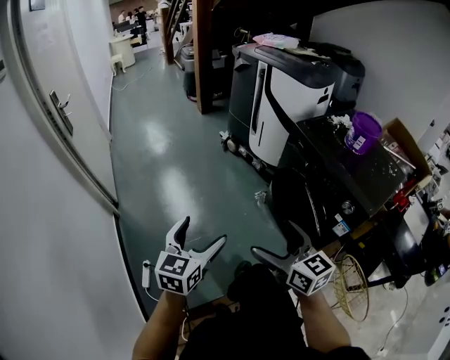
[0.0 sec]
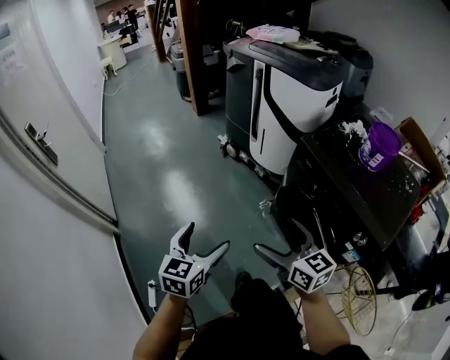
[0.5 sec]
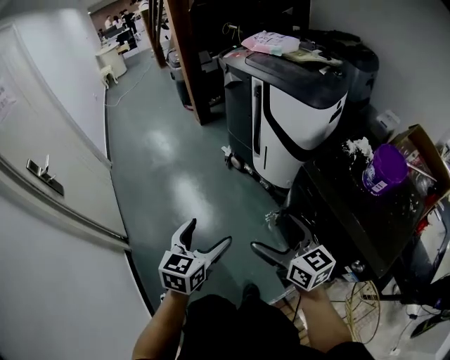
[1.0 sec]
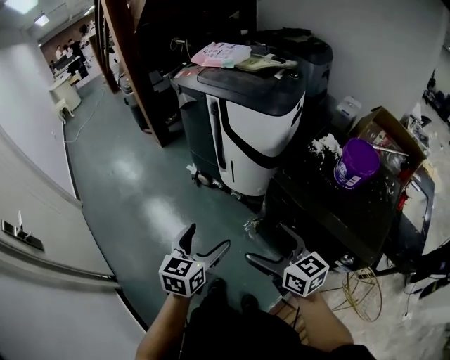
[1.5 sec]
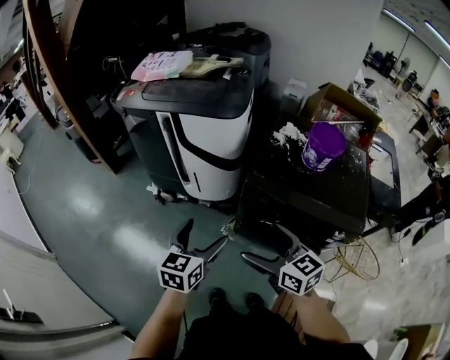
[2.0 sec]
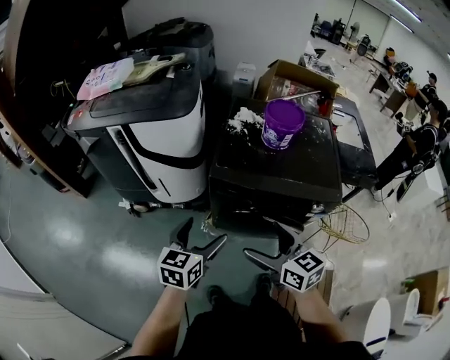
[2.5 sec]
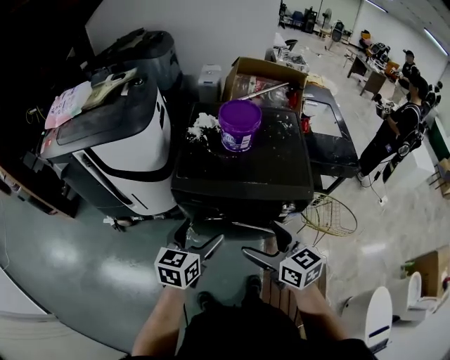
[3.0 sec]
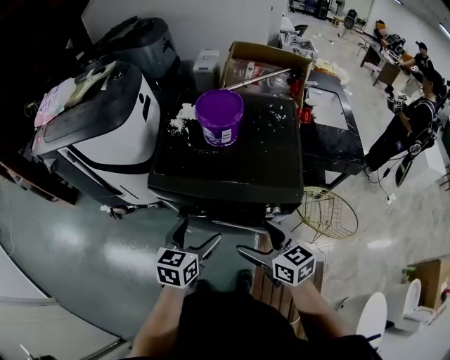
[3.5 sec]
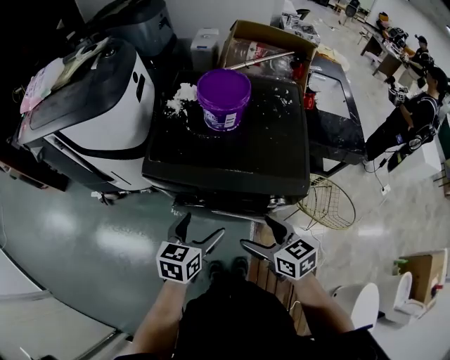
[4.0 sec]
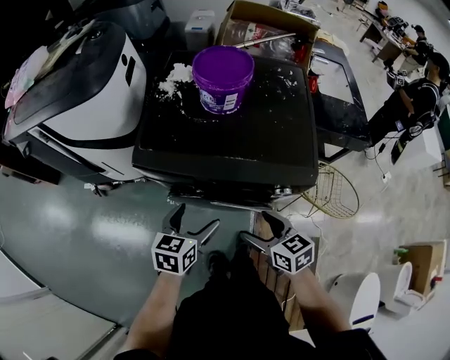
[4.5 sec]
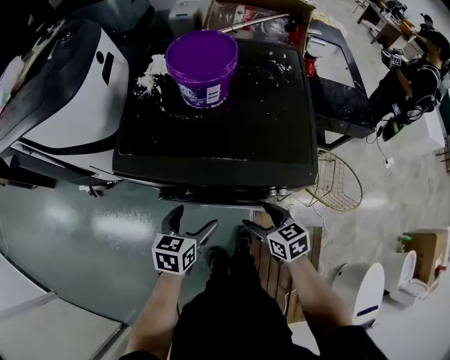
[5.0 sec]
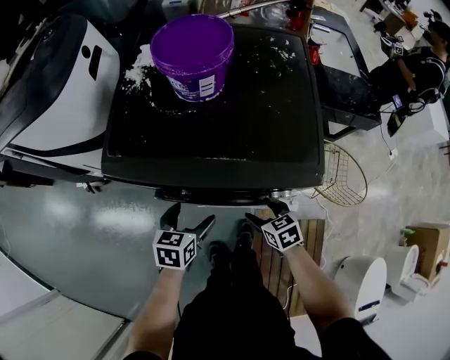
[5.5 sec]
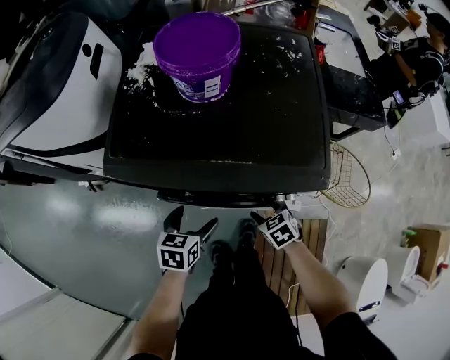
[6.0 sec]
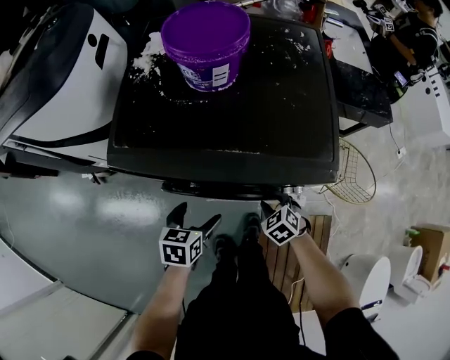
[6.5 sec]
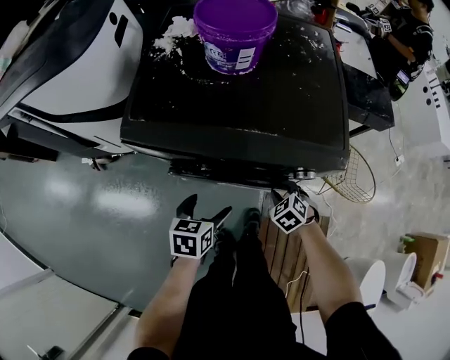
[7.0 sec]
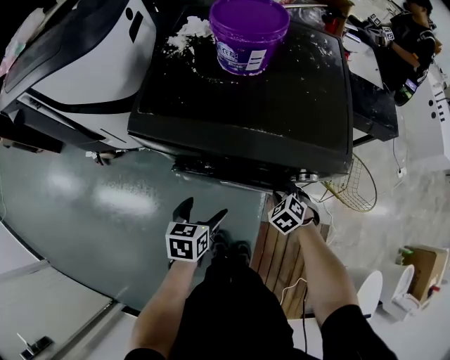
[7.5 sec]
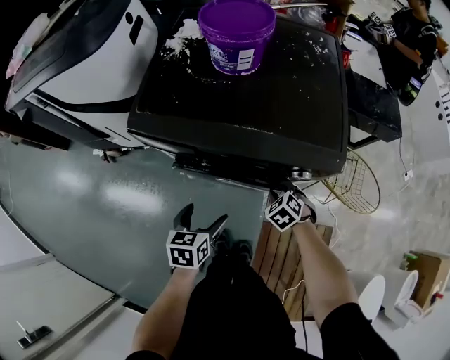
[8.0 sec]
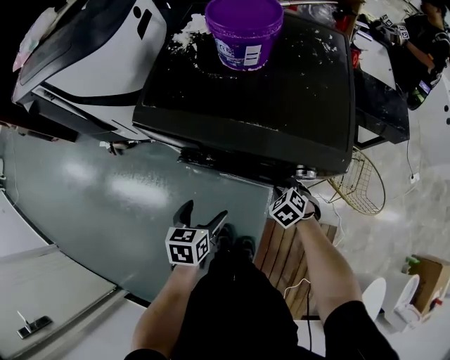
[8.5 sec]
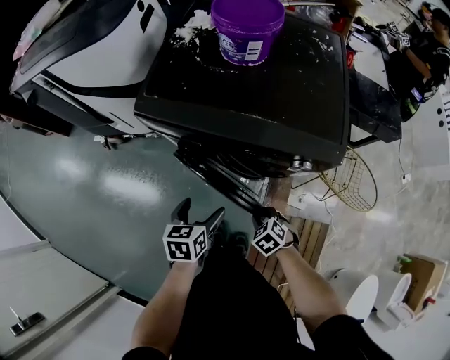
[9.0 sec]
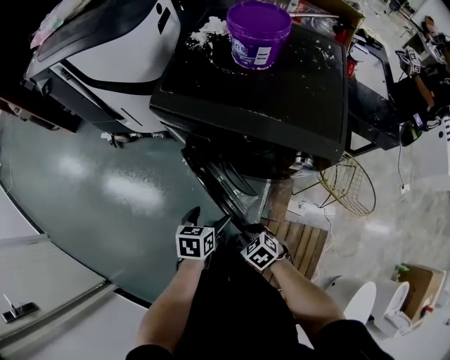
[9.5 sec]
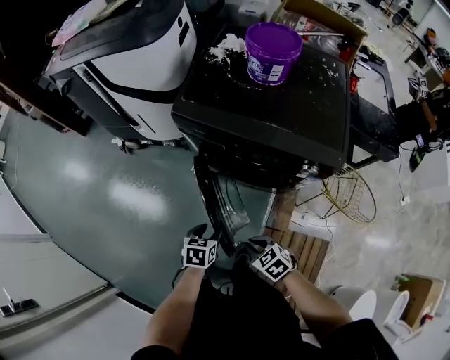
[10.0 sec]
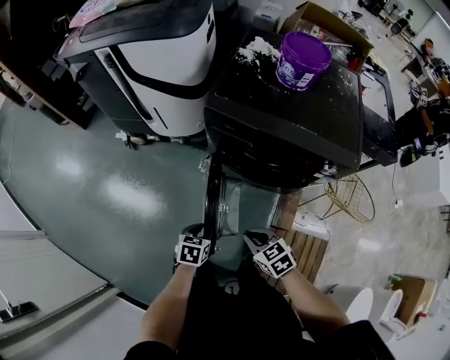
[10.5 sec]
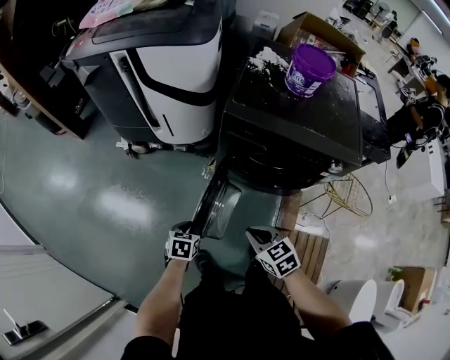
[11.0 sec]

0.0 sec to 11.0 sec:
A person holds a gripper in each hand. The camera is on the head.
0.0 sec to 2.0 sec: The right gripper moves roughly 35 cm, and changes its angle by approximately 30 degrees. The left gripper moves approximately 50 cm, and turns by about 40 degrees.
2.0 sec to 3.5 sec: Both grippers move to the right, roughly 30 cm.
3.5 sec to 5.5 sec: Both grippers move downward, some 25 cm. The right gripper swivels some 30 degrees.
5.5 sec to 7.5 sec: The right gripper ends up approximately 5 cm from where it was, changes its angle by roughly 40 degrees, and closes up. Meanwhile the left gripper moves backward, some 5 cm.
7.5 sec to 9.0 sec: The right gripper moves backward, roughly 15 cm, while the left gripper shifts by about 5 cm.
9.0 sec to 11.0 sec: The right gripper moves to the left and upward, some 30 cm, and turns by some 30 degrees. The left gripper heads to the left, covering roughly 30 cm, and closes up.

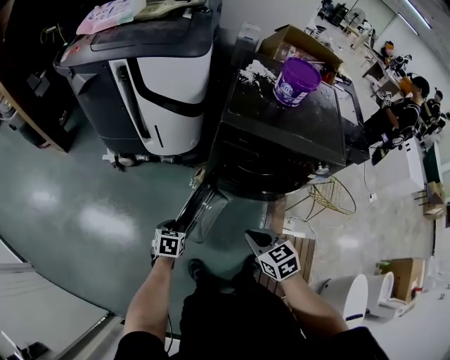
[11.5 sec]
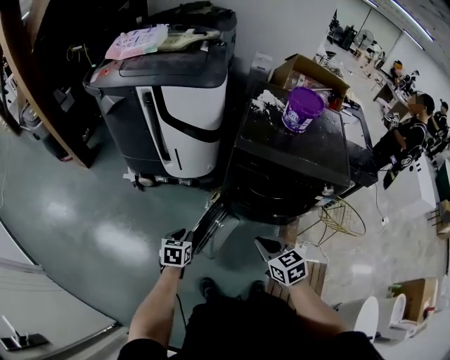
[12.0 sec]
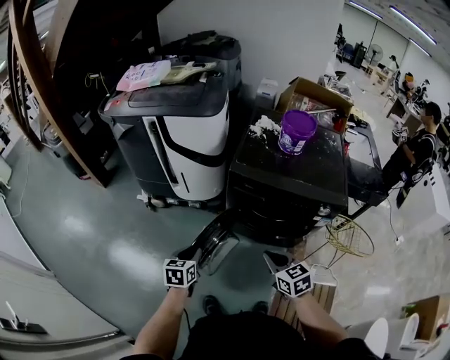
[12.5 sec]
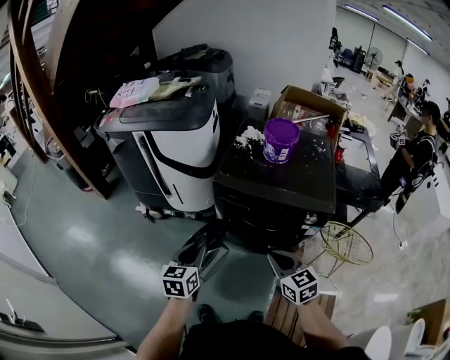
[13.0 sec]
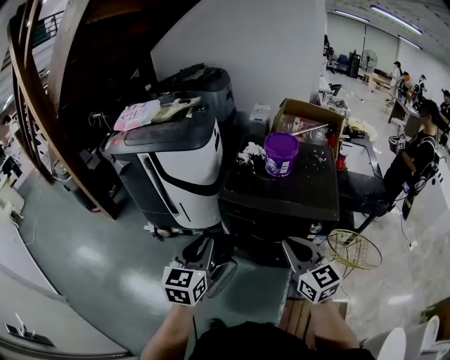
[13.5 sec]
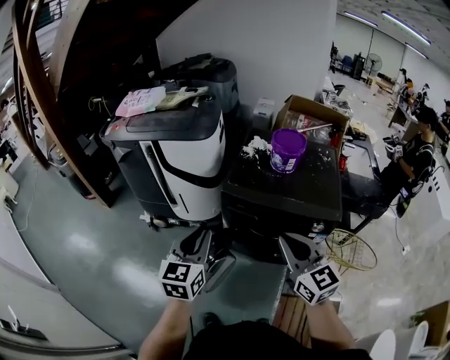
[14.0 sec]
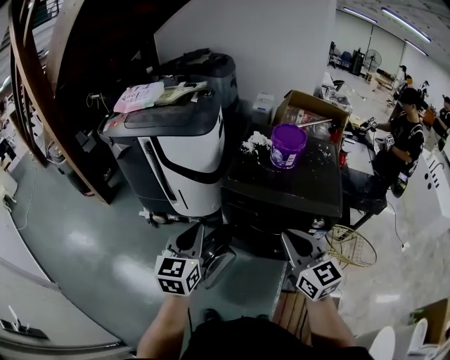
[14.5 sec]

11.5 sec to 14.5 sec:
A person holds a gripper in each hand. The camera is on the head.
11.5 sec to 13.0 sec: The left gripper is displaced upward and to the right by about 30 cm, and swivels about 30 degrees. The right gripper shifts some 20 cm to the right and upward, and changes its angle by some 20 degrees.
13.0 sec to 14.5 sec: The two grippers go about 15 cm upward.

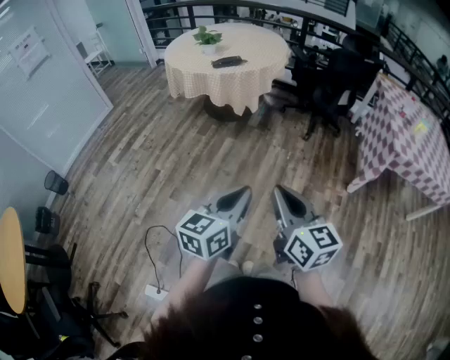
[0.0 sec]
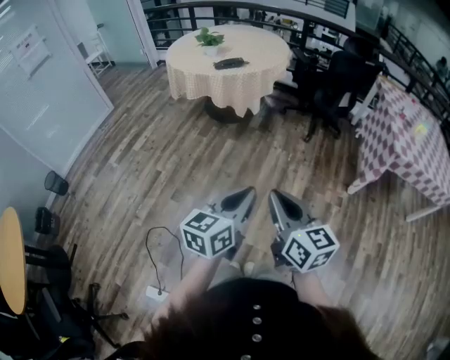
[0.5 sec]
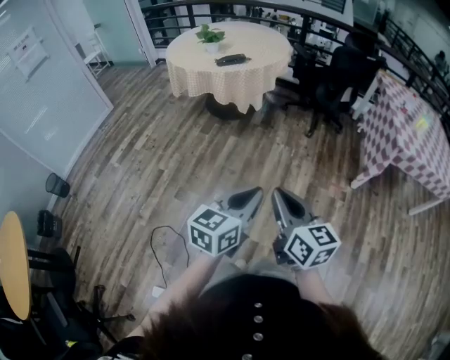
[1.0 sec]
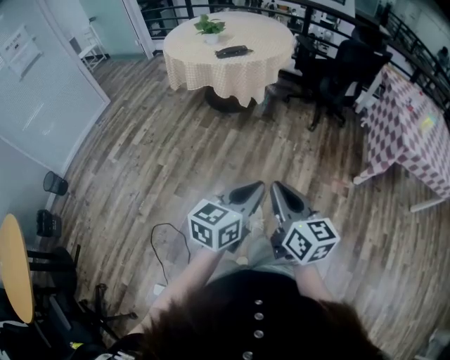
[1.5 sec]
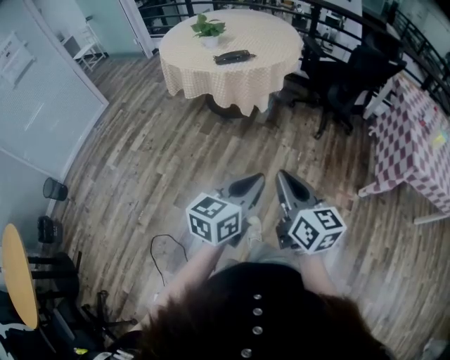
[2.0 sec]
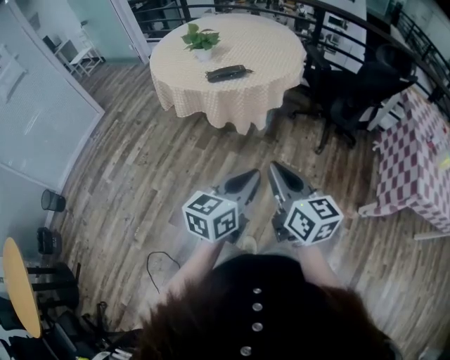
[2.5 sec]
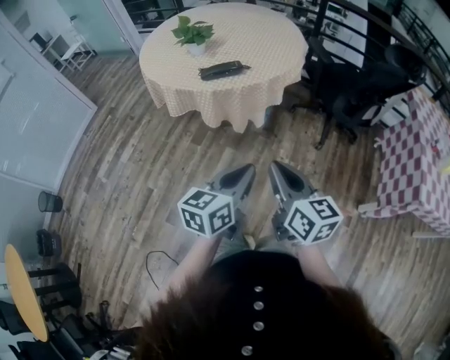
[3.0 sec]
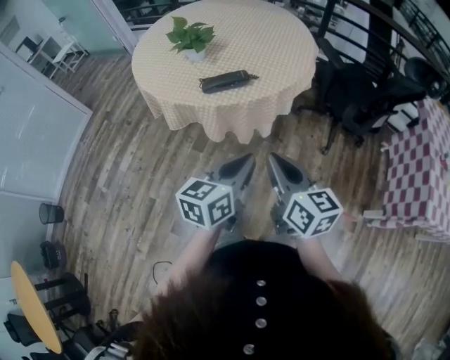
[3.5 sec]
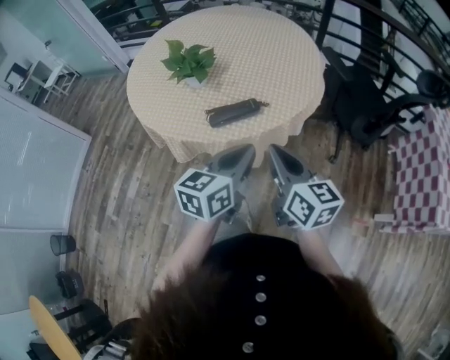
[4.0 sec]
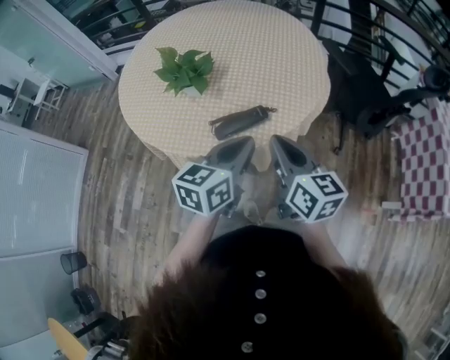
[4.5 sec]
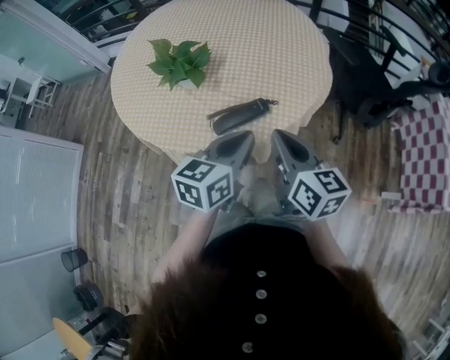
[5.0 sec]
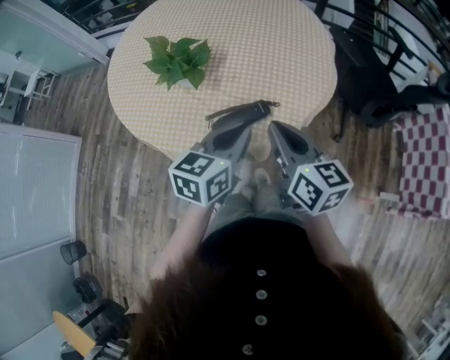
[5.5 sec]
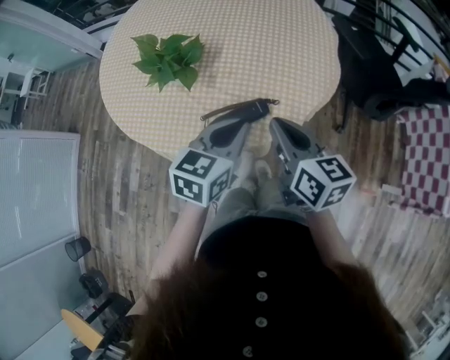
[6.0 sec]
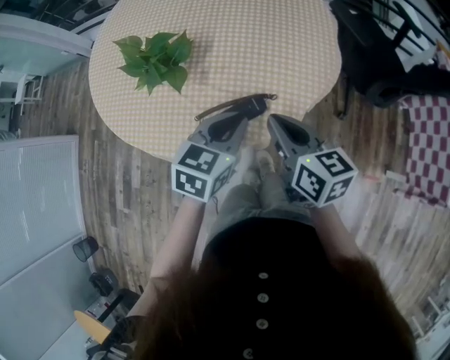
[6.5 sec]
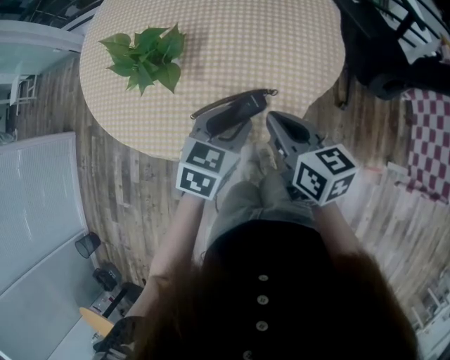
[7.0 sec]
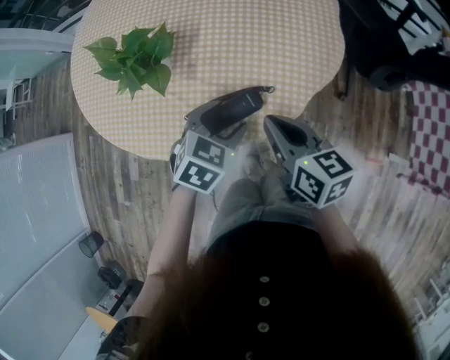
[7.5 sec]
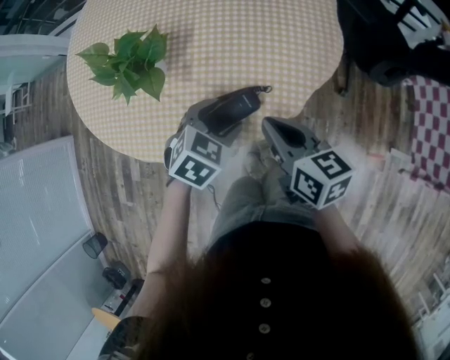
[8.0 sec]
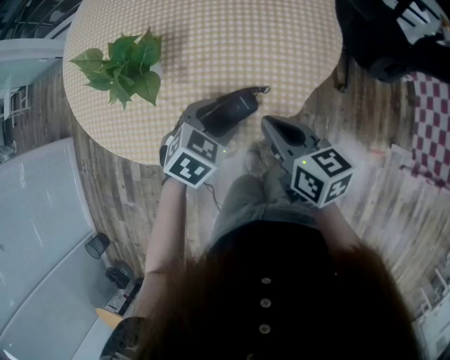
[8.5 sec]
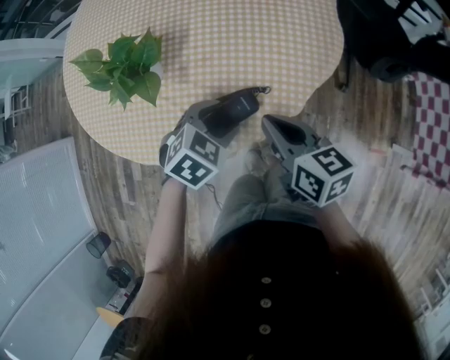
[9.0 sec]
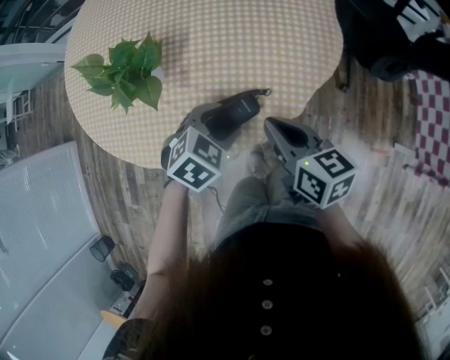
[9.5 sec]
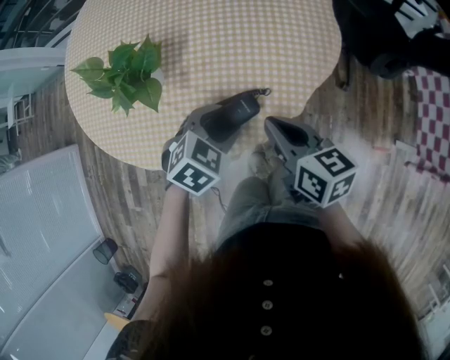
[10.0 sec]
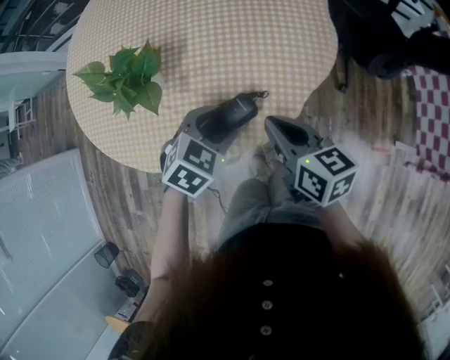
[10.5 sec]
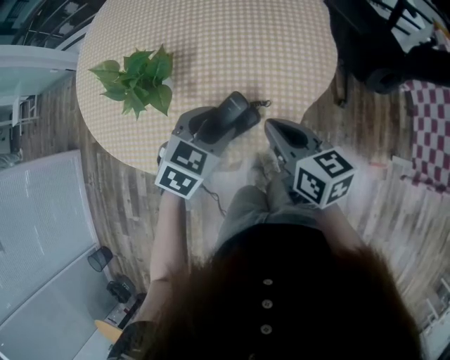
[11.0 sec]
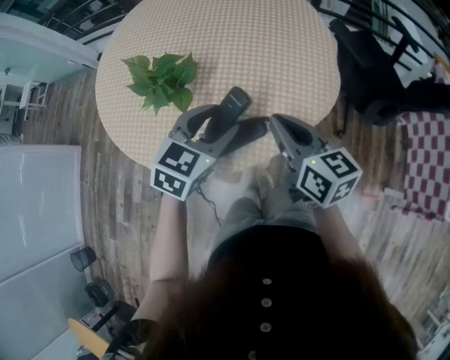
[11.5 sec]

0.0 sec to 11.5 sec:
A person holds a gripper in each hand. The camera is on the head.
0.0 sec to 2.0 sec: The two grippers go about 20 cm forward.
2.0 sec to 4.0 sec: The pair of grippers is taken forward, roughly 50 cm.
4.0 sec to 6.0 sec: The two grippers go roughly 15 cm forward.
6.0 sec to 7.5 sec: The right gripper shifts roughly 5 cm downward. Meanwhile the left gripper goes roughly 10 cm downward, turns by approximately 30 degrees, and opens.
7.5 sec to 9.5 sec: The grippers make only small movements.
9.5 sec to 11.5 sec: Both grippers travel together upward, about 10 cm. The left gripper rotates approximately 30 degrees.

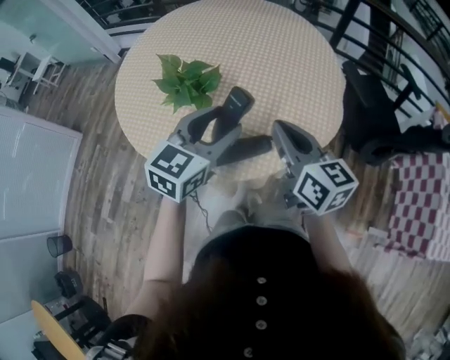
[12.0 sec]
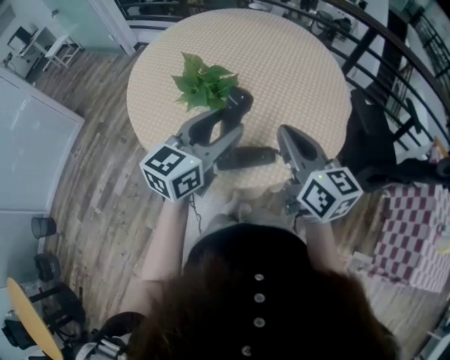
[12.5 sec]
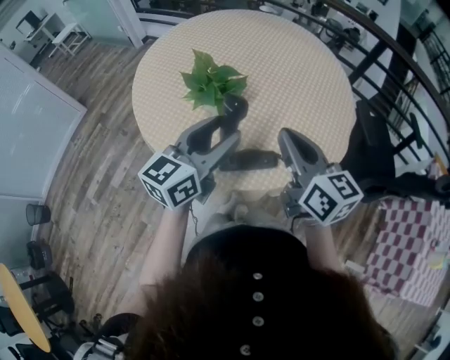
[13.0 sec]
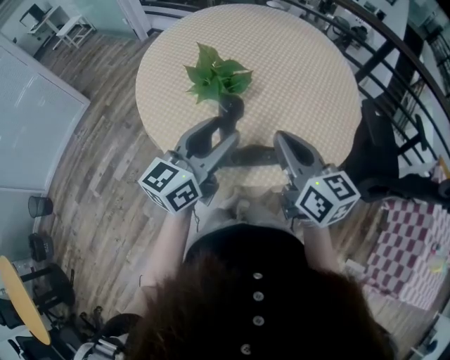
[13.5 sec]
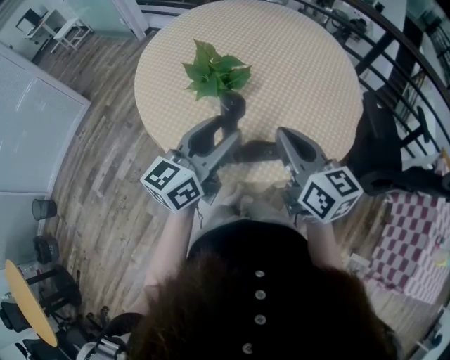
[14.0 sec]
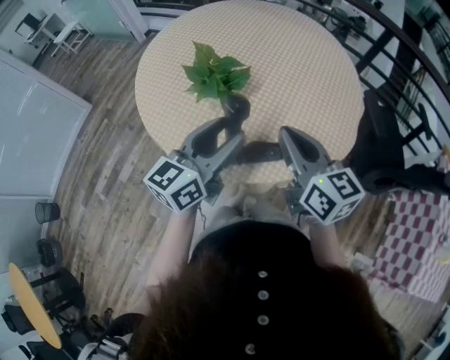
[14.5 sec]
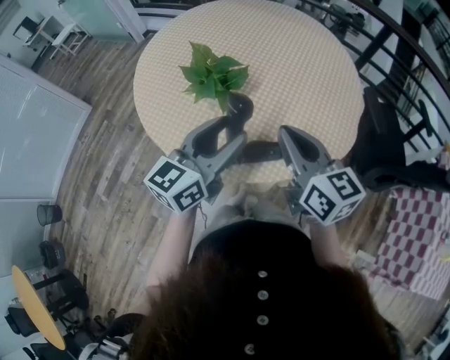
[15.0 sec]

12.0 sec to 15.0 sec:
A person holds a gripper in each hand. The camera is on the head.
12.0 sec to 13.5 sec: The two grippers go roughly 5 cm to the left. The left gripper rotates some 30 degrees.
13.5 sec to 15.0 sec: The grippers stay close to where they were, moving slightly.
